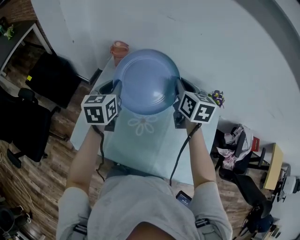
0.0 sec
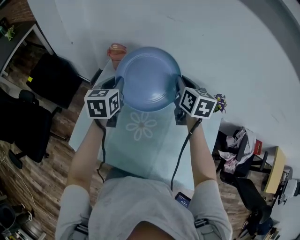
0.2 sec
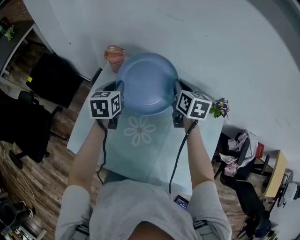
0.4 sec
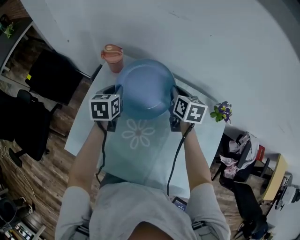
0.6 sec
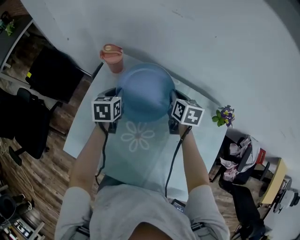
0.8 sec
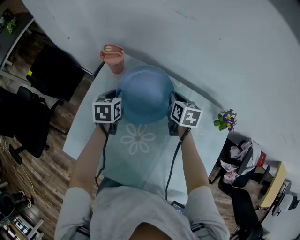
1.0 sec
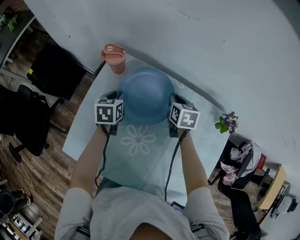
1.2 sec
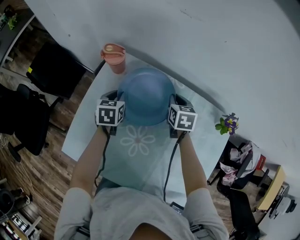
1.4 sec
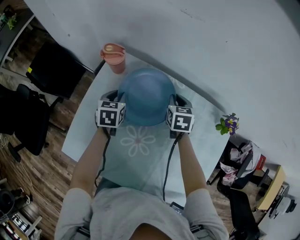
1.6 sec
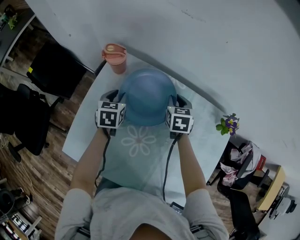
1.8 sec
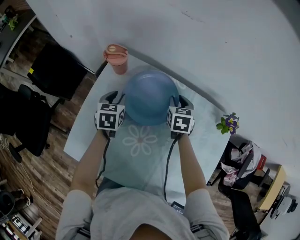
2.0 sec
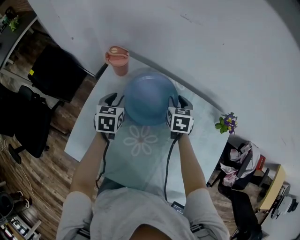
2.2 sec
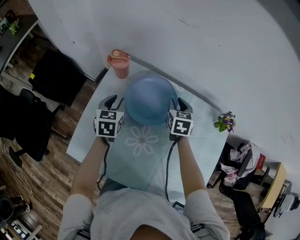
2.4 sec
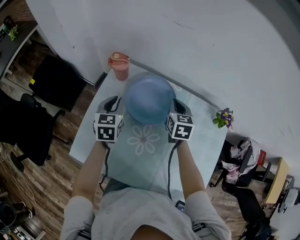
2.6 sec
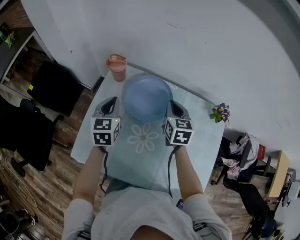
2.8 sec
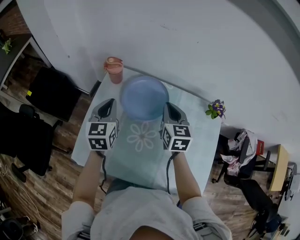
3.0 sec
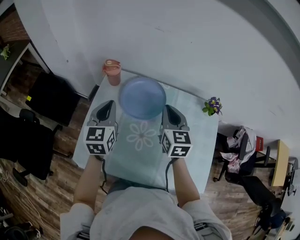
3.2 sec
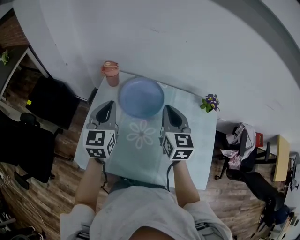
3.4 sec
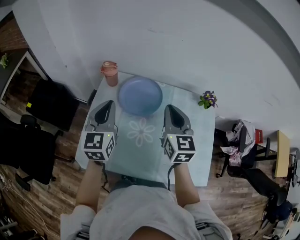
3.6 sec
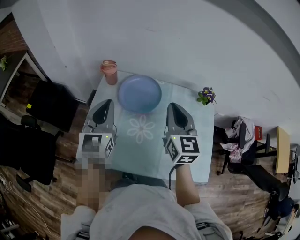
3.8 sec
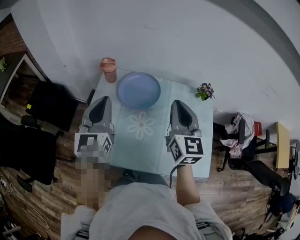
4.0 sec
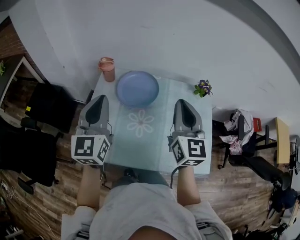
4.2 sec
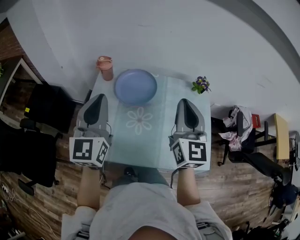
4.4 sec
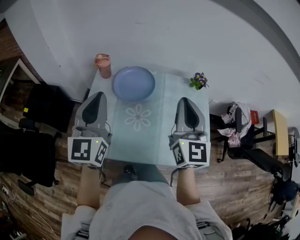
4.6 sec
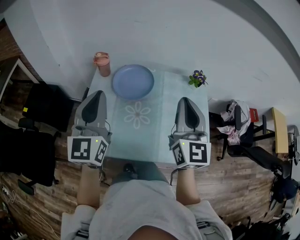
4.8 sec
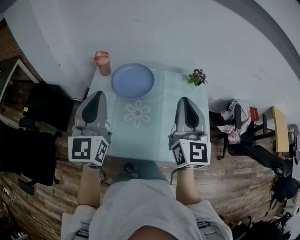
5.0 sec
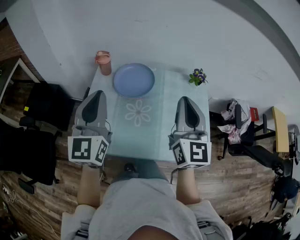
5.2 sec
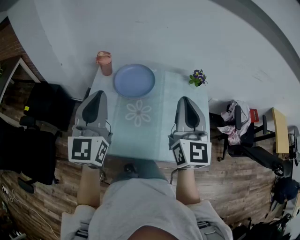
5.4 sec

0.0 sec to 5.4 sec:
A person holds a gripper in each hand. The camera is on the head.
0.0 sec to 1.4 sec: Both grippers travel together downward and forward, approximately 20 cm. The left gripper turns by roughly 20 degrees.
1.4 sec to 2.8 sec: The two grippers go roughly 15 cm upward and backward. The right gripper opens and closes again. The left gripper changes its angle by roughly 20 degrees.
2.8 sec to 4.0 sec: Both grippers travel together upward and backward, about 25 cm. The left gripper changes its angle by roughly 30 degrees. The right gripper rotates about 30 degrees.
4.0 sec to 5.4 sec: Both grippers travel together backward and upward, approximately 10 cm.

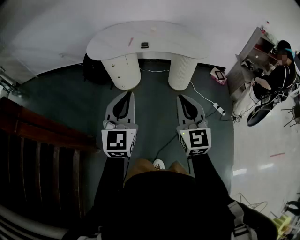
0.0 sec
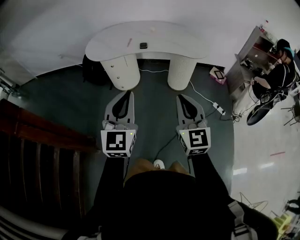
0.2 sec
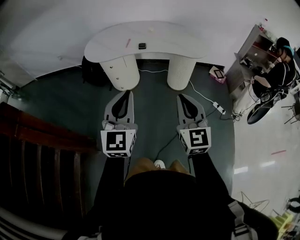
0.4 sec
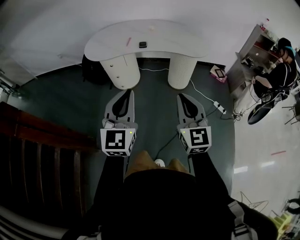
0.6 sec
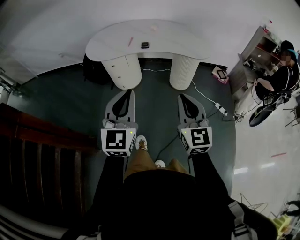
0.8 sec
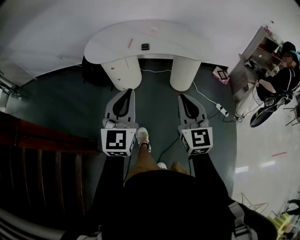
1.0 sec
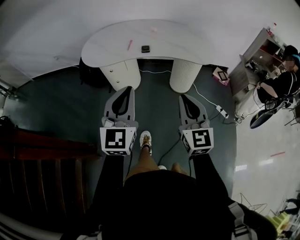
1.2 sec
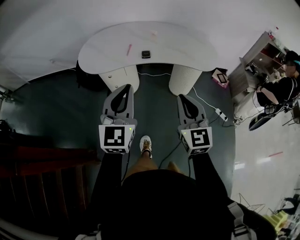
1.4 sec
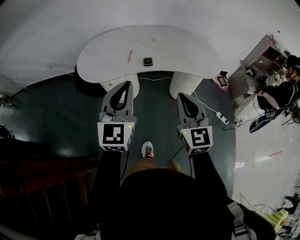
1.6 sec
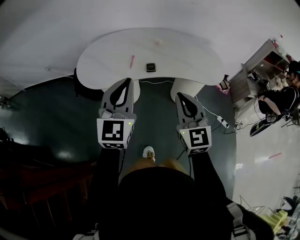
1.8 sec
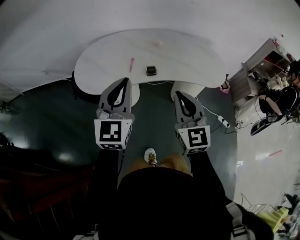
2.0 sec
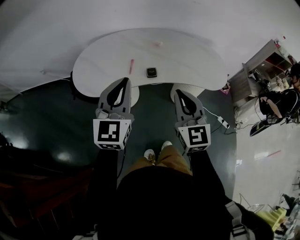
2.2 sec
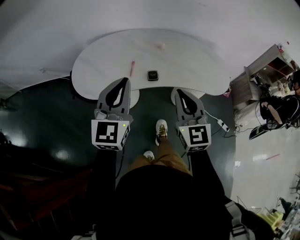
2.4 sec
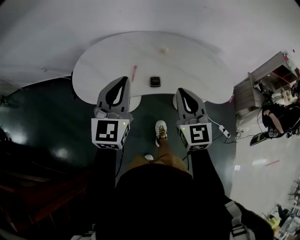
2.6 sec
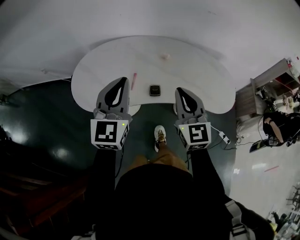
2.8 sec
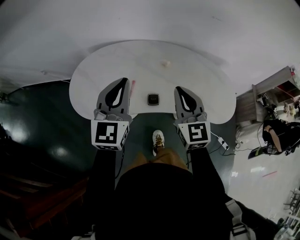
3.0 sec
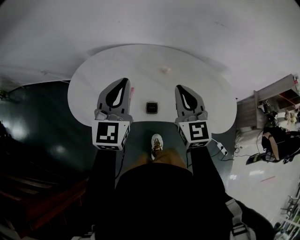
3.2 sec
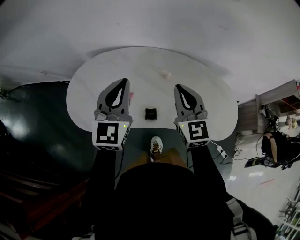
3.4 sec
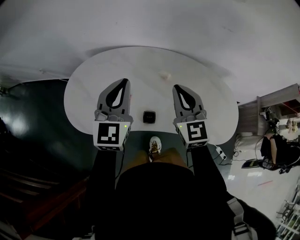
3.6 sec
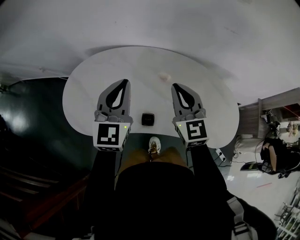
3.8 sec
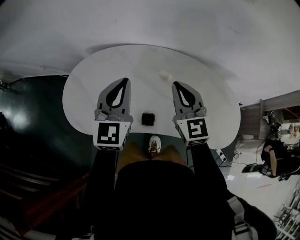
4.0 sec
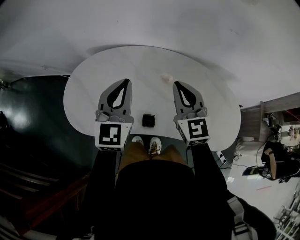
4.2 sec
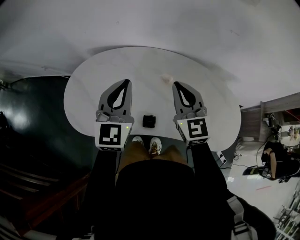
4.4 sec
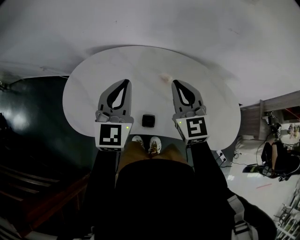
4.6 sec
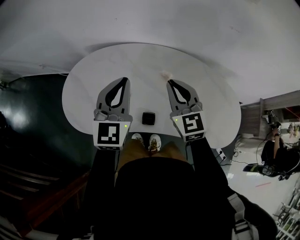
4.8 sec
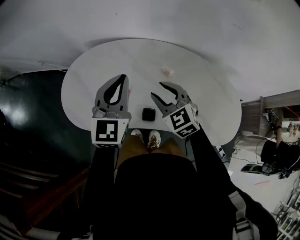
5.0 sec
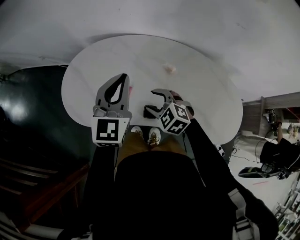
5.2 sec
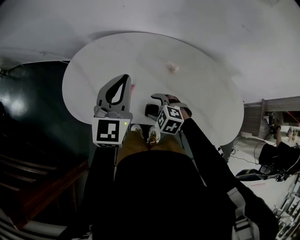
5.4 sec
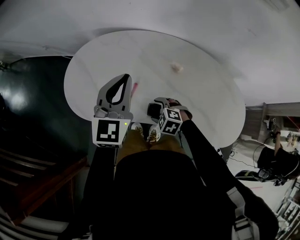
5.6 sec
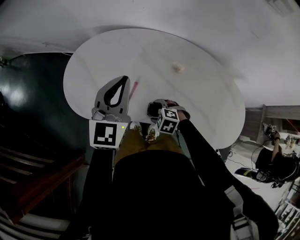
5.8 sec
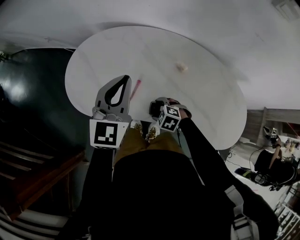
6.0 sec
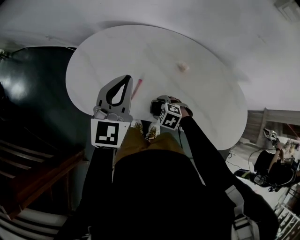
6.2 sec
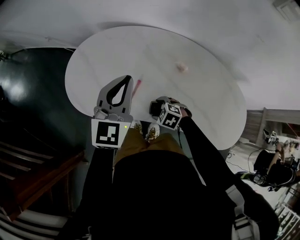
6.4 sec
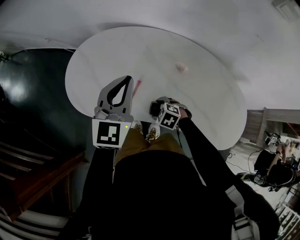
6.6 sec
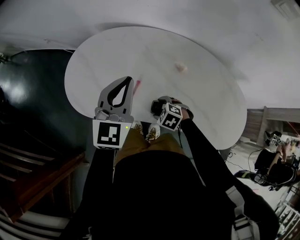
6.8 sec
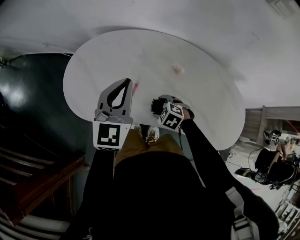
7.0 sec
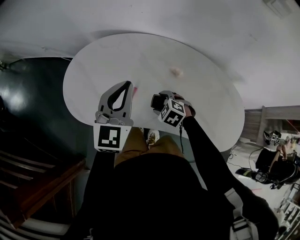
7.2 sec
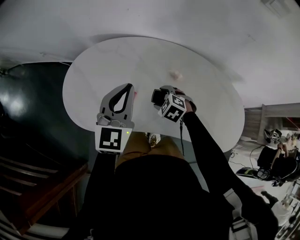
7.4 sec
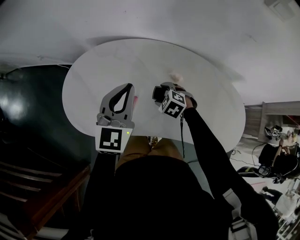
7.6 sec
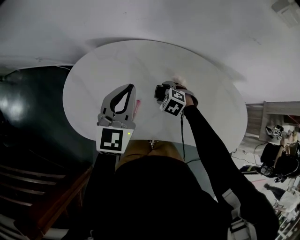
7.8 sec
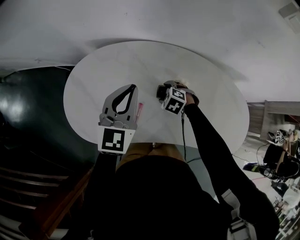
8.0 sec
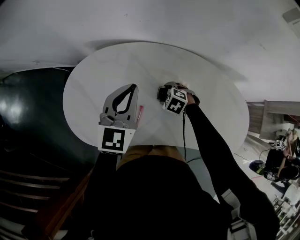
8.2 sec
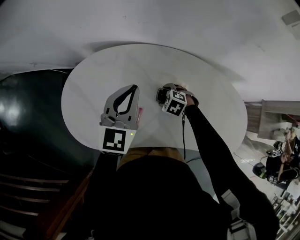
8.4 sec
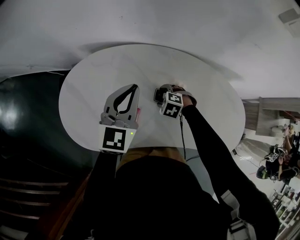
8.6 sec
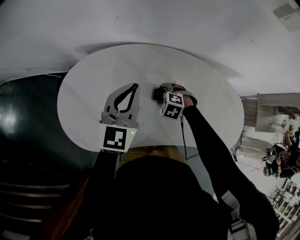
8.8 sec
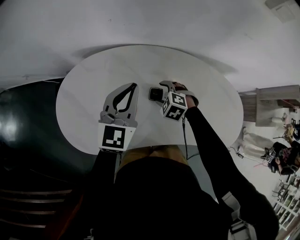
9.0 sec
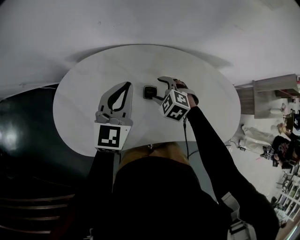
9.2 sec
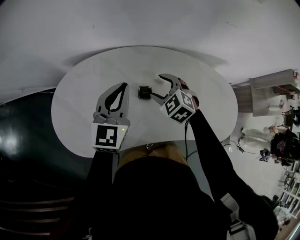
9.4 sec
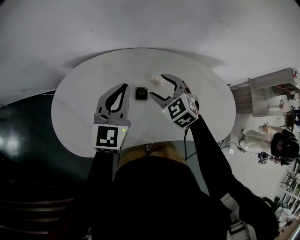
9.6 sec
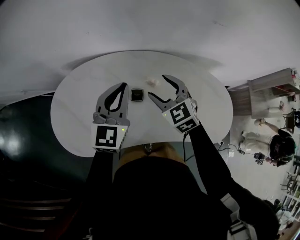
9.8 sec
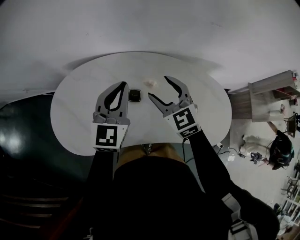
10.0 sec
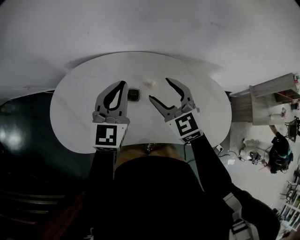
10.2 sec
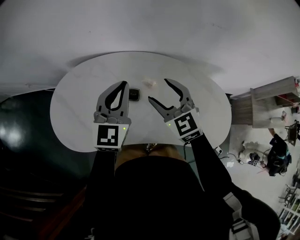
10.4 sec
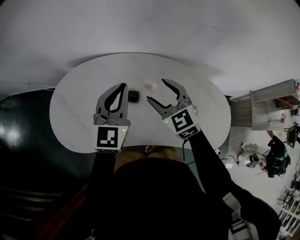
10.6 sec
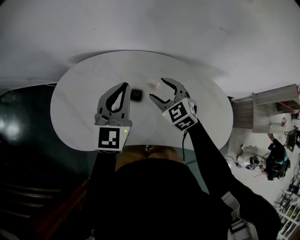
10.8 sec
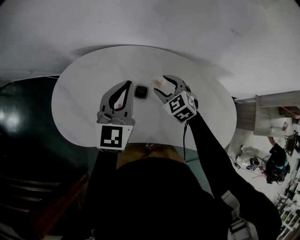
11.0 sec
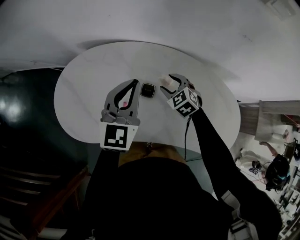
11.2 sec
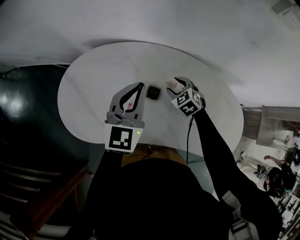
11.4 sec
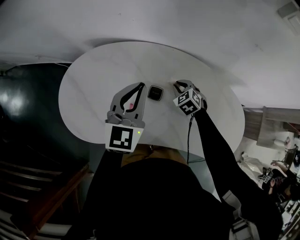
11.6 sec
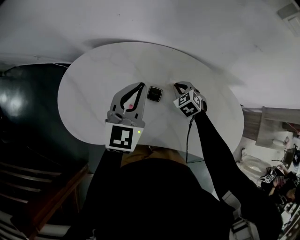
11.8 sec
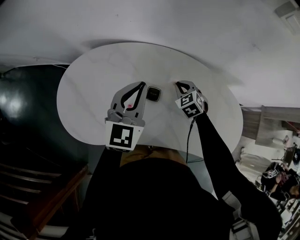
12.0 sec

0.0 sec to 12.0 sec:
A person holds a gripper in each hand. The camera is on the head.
0.0 sec to 1.6 sec: Both grippers move forward, some 25 cm.
1.6 sec to 3.0 sec: Both grippers move forward, about 30 cm.
3.0 sec to 4.4 sec: Both grippers move forward, about 15 cm.
4.4 sec to 6.0 sec: The left gripper changes place by roughly 5 cm; the right gripper moves downward, roughly 30 cm, angles its fingers downward, by some 60 degrees, and opens up.
6.0 sec to 7.6 sec: The right gripper moves forward, to the right and upward, about 15 cm.
7.6 sec to 9.0 sec: The left gripper travels forward by approximately 5 cm.
9.0 sec to 10.4 sec: The right gripper moves upward and to the right, about 25 cm, and tilts its fingers approximately 40 degrees upward. The left gripper is displaced to the right by about 10 cm.
10.4 sec to 12.0 sec: The left gripper changes place by roughly 5 cm. Meanwhile the right gripper is displaced downward and forward by approximately 25 cm, swivels approximately 30 degrees, and closes up.

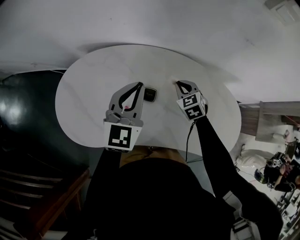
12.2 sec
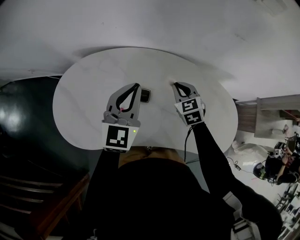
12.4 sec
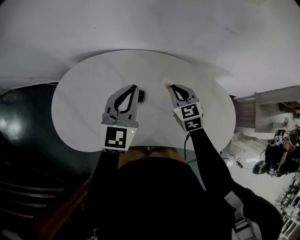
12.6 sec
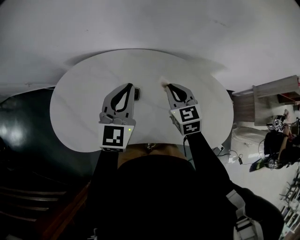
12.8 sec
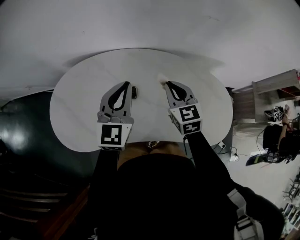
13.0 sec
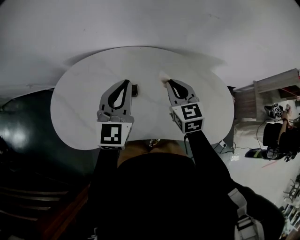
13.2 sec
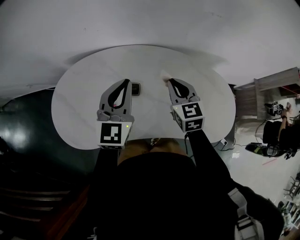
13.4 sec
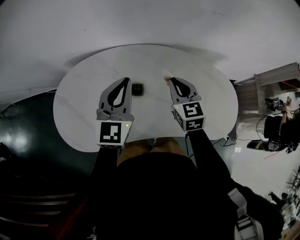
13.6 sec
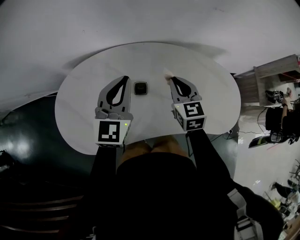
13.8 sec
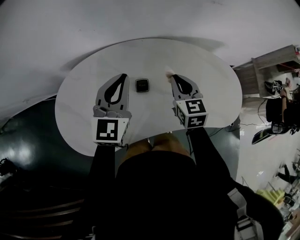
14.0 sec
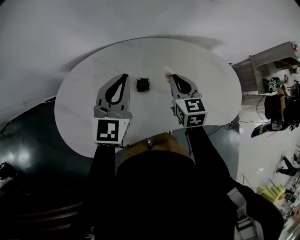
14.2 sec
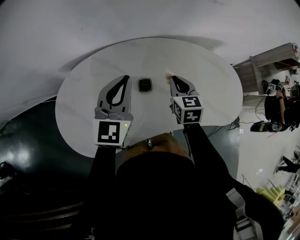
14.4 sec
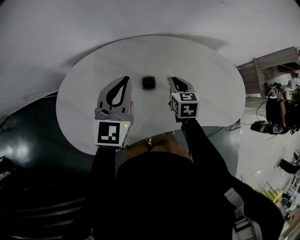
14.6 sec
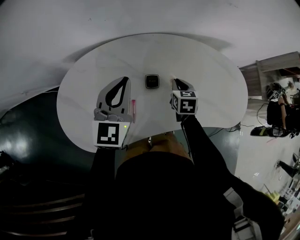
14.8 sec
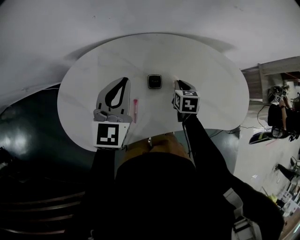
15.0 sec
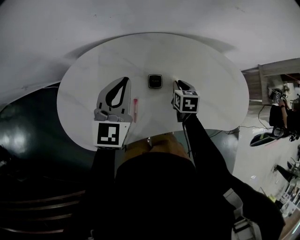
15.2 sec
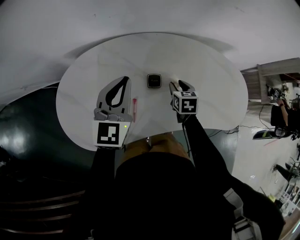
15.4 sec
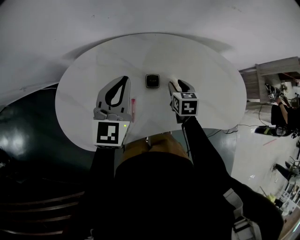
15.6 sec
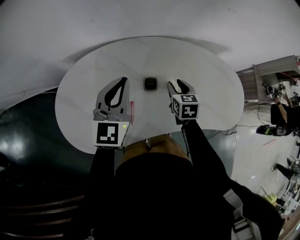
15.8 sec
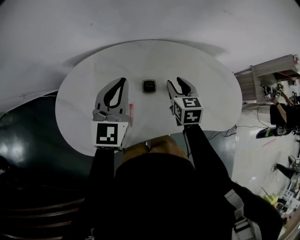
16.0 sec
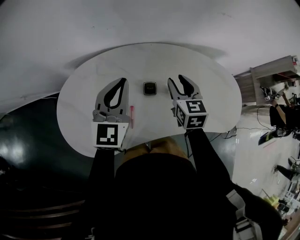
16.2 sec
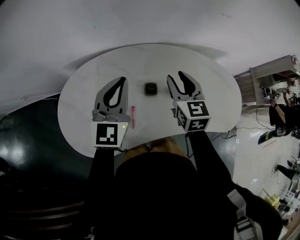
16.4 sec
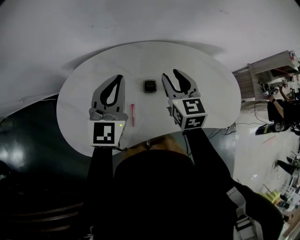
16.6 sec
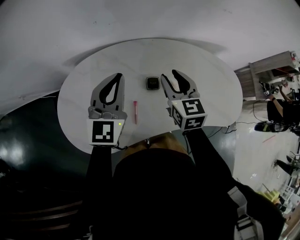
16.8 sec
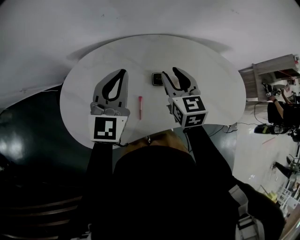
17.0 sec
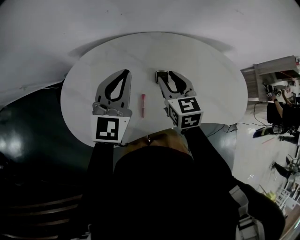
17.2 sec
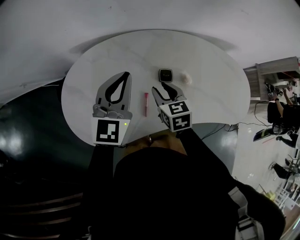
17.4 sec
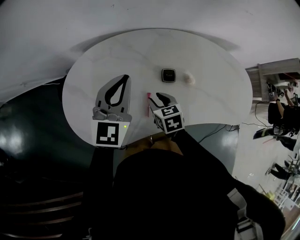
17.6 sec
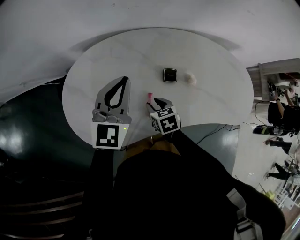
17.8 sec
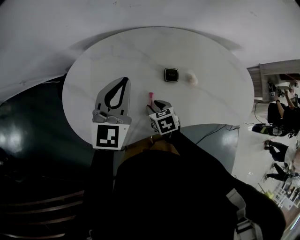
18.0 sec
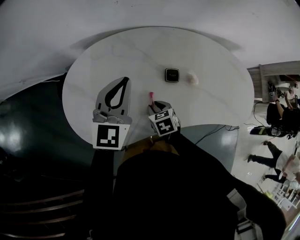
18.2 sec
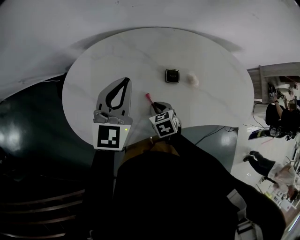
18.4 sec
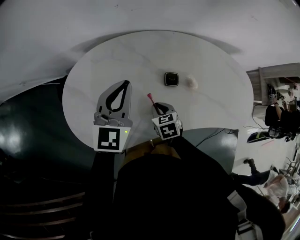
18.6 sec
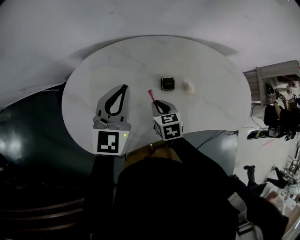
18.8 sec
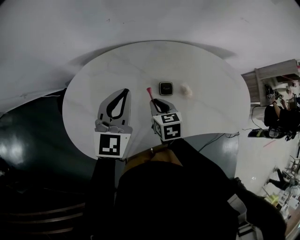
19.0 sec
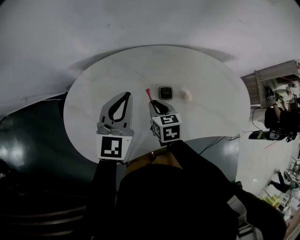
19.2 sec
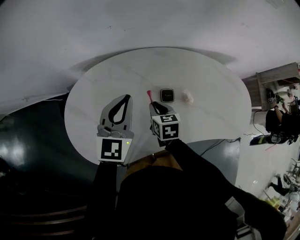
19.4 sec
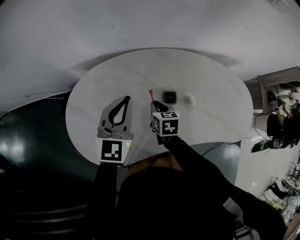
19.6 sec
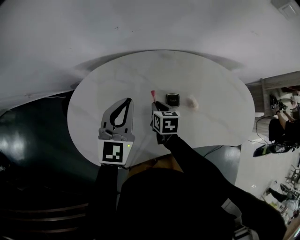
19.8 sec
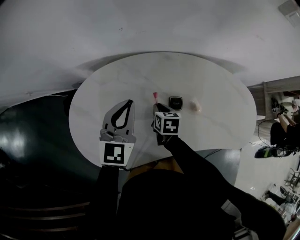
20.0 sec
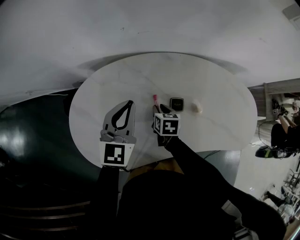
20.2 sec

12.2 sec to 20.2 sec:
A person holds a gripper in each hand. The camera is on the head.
12.2 sec to 13.8 sec: The right gripper travels upward and backward by some 15 cm, and swivels approximately 40 degrees.
13.8 sec to 15.4 sec: The right gripper shifts approximately 15 cm downward, rotates roughly 30 degrees, and opens up. Meanwhile the left gripper shifts some 5 cm to the left.
15.4 sec to 17.0 sec: The left gripper shifts by some 5 cm. The right gripper moves upward and to the left, some 20 cm, and swivels some 30 degrees.
17.0 sec to 18.6 sec: The right gripper goes about 25 cm downward, backward and to the left, and angles its fingers downward, by some 30 degrees. The left gripper travels downward by some 5 cm.
18.6 sec to 20.2 sec: The right gripper moves forward, about 10 cm, and turns by about 20 degrees.
